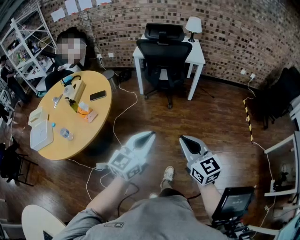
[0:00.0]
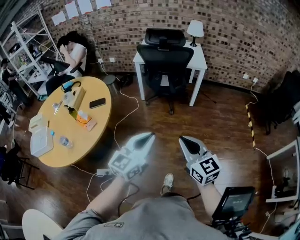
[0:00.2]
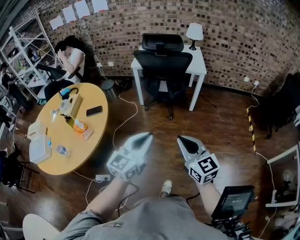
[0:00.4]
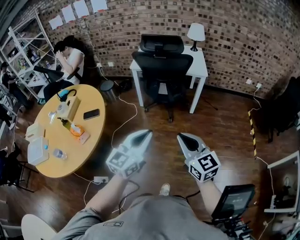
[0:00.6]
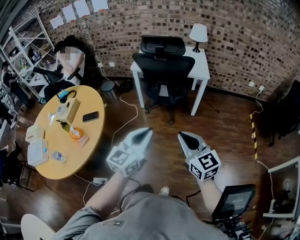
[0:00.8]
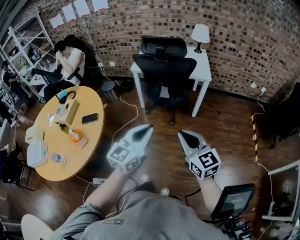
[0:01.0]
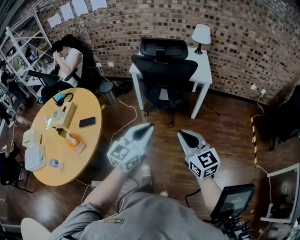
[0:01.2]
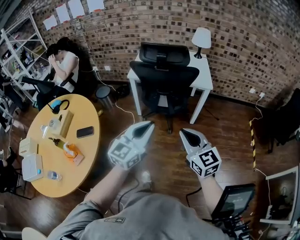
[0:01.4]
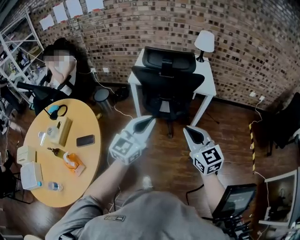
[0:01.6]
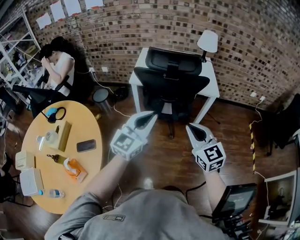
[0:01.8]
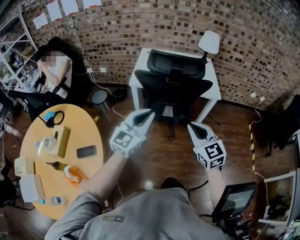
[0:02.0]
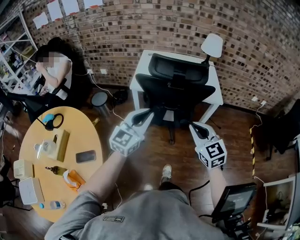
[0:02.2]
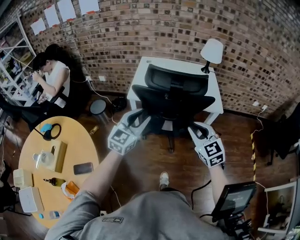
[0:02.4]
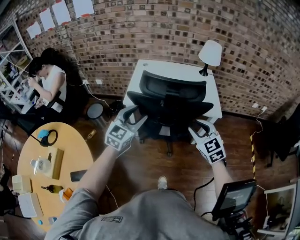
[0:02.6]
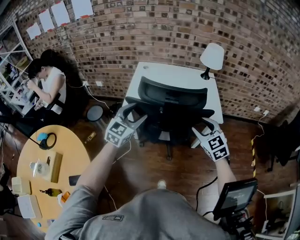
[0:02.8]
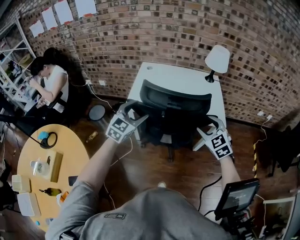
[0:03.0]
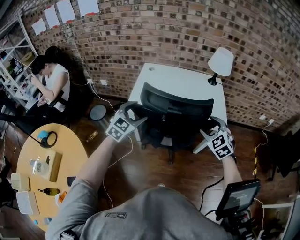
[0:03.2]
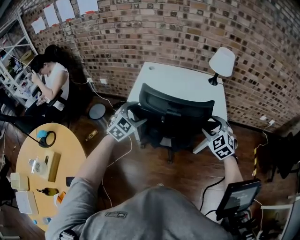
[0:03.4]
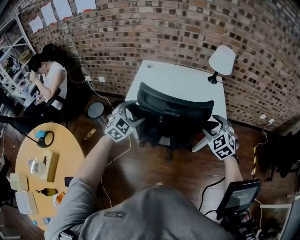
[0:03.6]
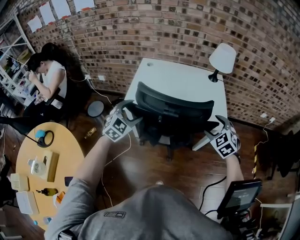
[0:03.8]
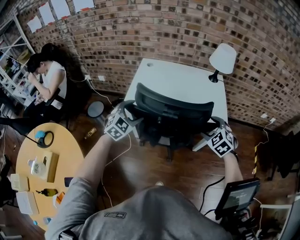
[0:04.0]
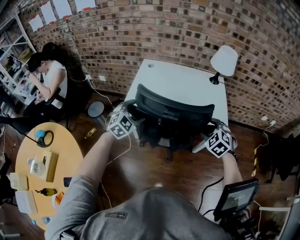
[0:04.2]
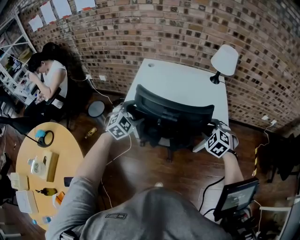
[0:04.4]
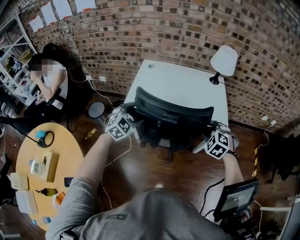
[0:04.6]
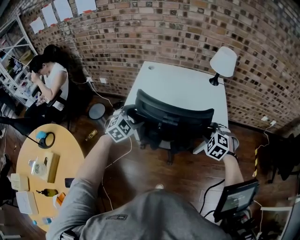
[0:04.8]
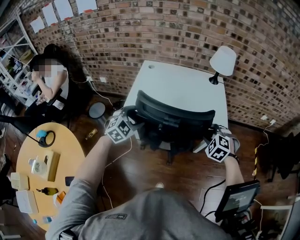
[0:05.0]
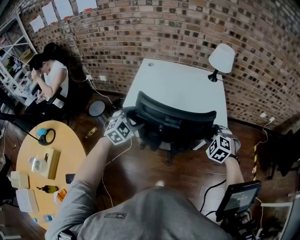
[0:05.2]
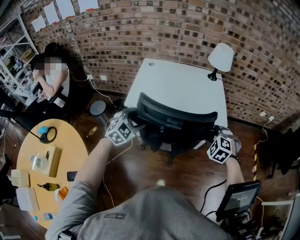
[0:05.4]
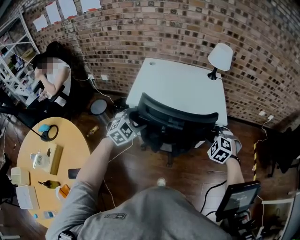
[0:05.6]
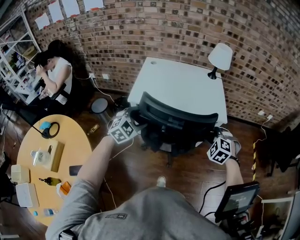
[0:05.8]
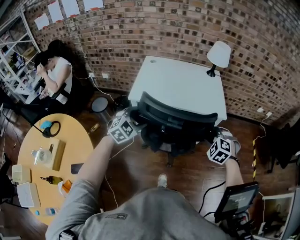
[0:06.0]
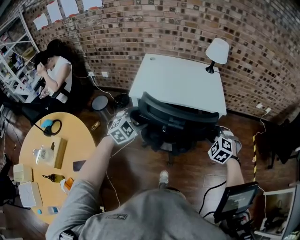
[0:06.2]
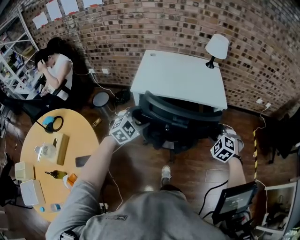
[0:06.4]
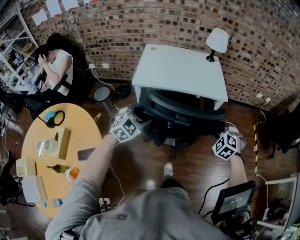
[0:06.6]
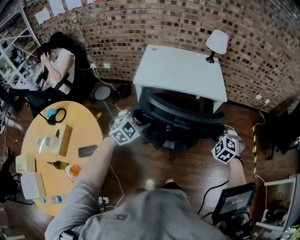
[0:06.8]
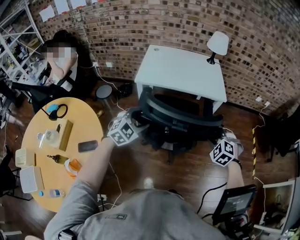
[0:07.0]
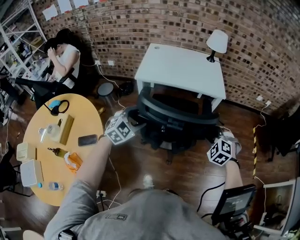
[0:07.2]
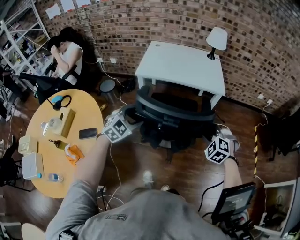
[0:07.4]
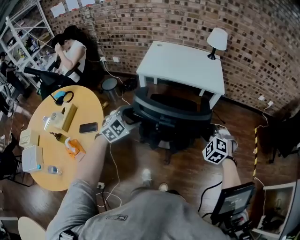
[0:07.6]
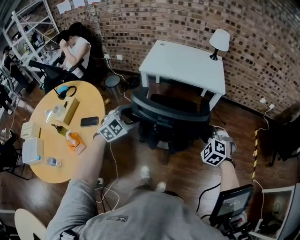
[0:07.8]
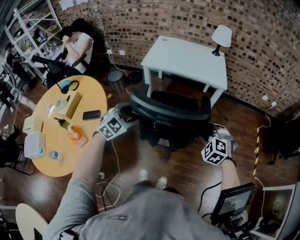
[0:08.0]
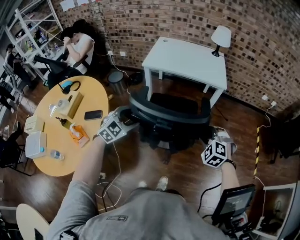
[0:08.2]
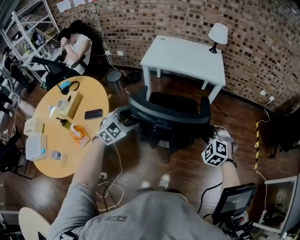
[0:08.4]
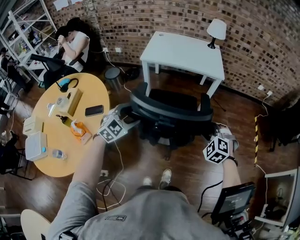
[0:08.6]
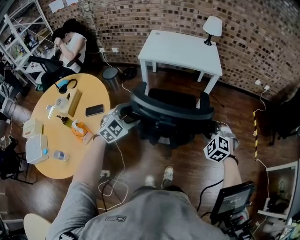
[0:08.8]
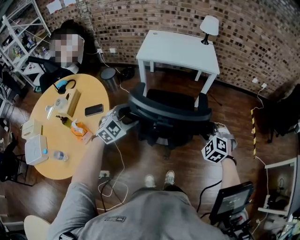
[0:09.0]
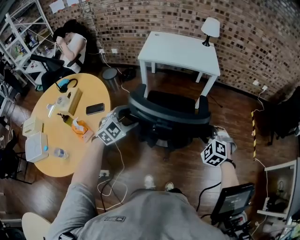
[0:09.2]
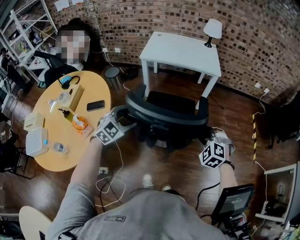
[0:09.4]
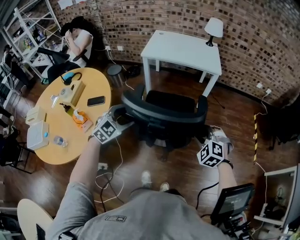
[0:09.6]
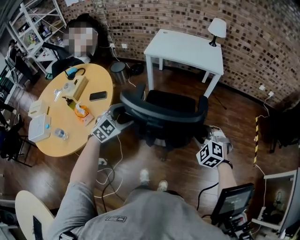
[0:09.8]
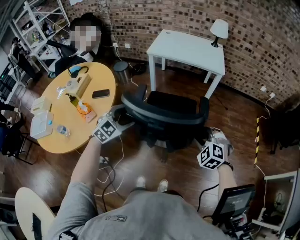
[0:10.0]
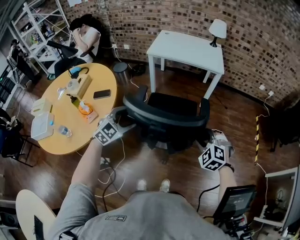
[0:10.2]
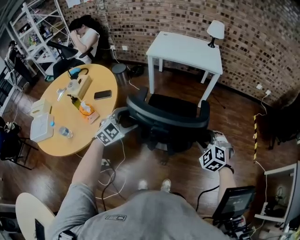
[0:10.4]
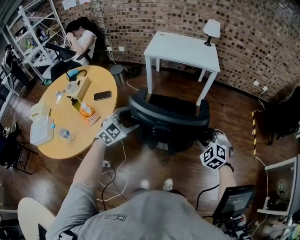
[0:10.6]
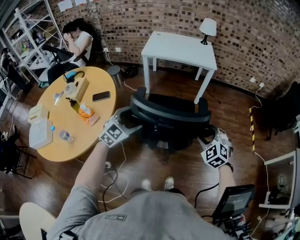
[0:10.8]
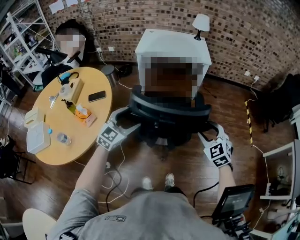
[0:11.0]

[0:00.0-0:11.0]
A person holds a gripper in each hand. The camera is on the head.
0.0 to 1.6 s: The two grippers travel together, forward, approximately 40 cm.
1.6 to 3.2 s: Both grippers move forward, roughly 40 cm. The left gripper swivels about 30 degrees, and opens its fingers. The right gripper swivels about 40 degrees, and opens its fingers.
3.2 to 4.8 s: The right gripper moves downward, about 5 cm, and turns by some 30 degrees, while the left gripper shifts by about 5 cm.
4.8 to 6.2 s: Both grippers travel together backward, roughly 15 cm.
6.2 to 7.8 s: The grippers both shift backward by approximately 25 cm.
7.8 to 9.4 s: Both grippers move backward, some 15 cm.
9.4 to 11.0 s: Both grippers travel together backward, about 10 cm. The left gripper changes its angle by roughly 20 degrees; the right gripper swivels about 30 degrees.

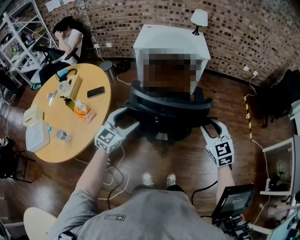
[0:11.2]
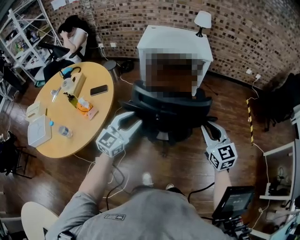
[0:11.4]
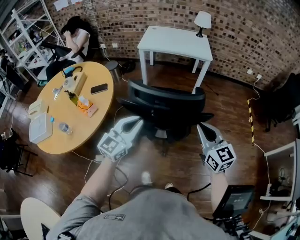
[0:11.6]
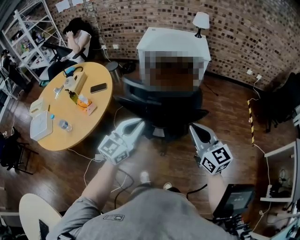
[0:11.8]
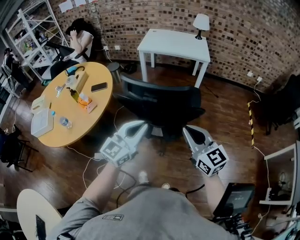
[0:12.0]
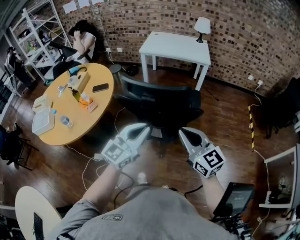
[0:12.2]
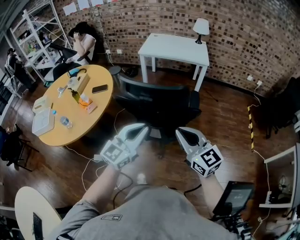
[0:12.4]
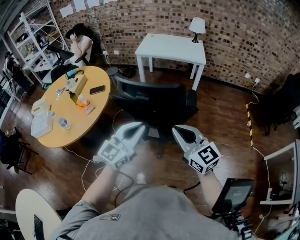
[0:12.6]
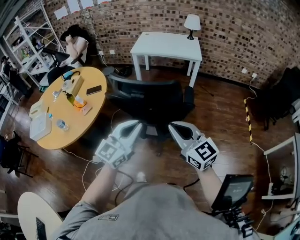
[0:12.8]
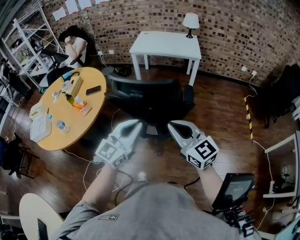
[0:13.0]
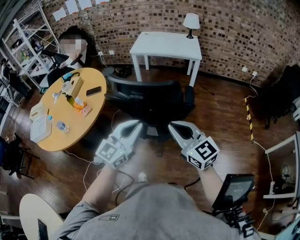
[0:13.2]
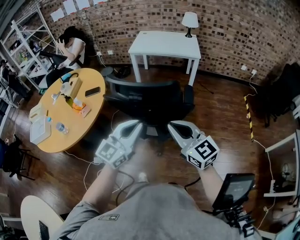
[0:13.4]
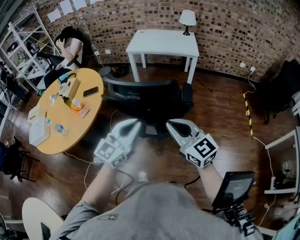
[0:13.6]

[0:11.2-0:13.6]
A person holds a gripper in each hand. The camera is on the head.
11.2 to 12.4 s: The right gripper shifts approximately 15 cm backward and upward, swivels approximately 40 degrees, and closes its fingers; the left gripper travels to the right, backward and upward by approximately 25 cm, and closes its fingers.
12.4 to 13.6 s: Both grippers stay put.

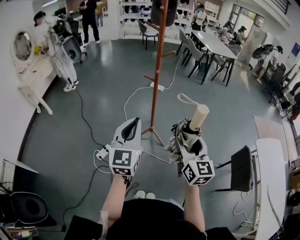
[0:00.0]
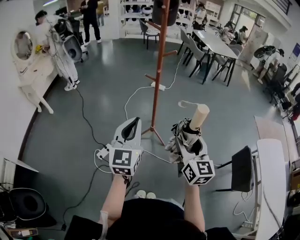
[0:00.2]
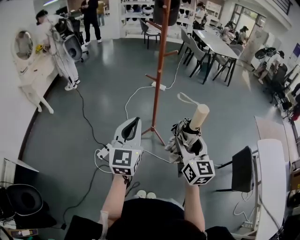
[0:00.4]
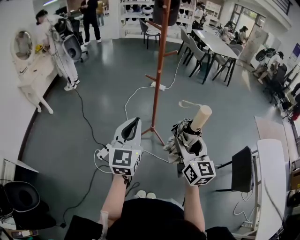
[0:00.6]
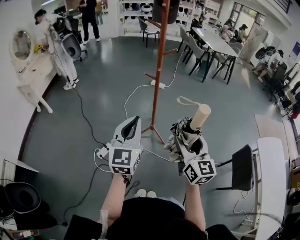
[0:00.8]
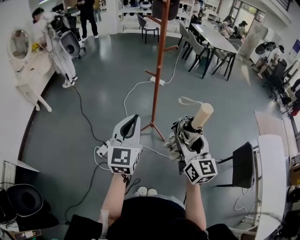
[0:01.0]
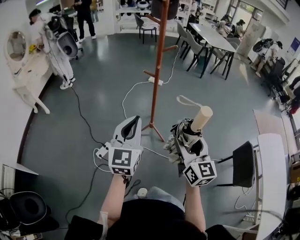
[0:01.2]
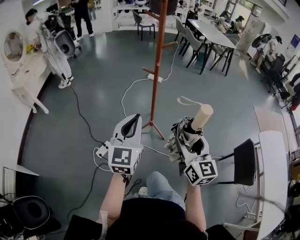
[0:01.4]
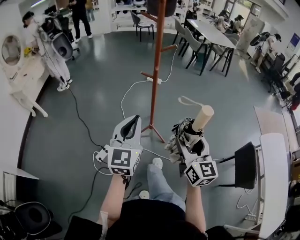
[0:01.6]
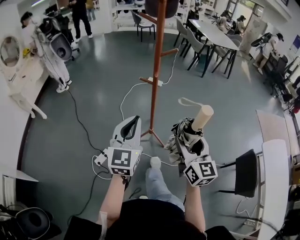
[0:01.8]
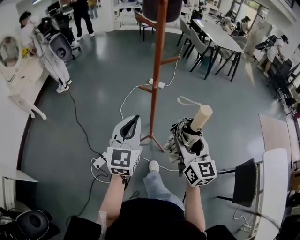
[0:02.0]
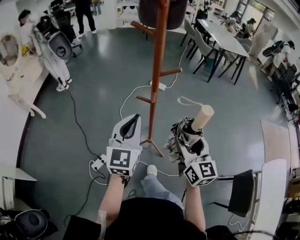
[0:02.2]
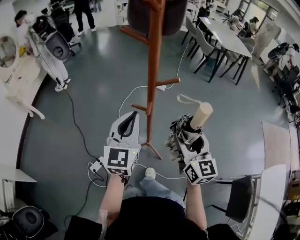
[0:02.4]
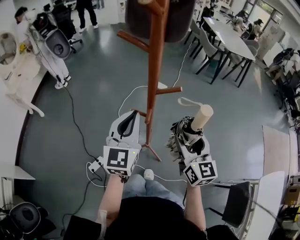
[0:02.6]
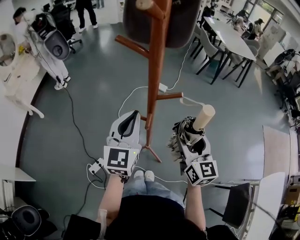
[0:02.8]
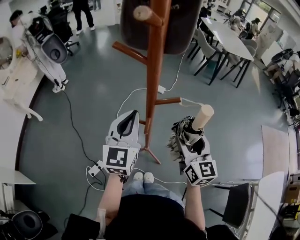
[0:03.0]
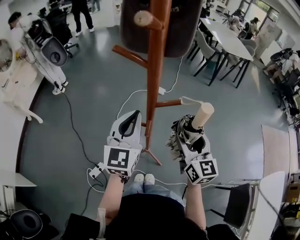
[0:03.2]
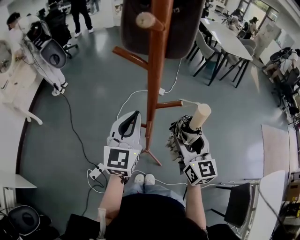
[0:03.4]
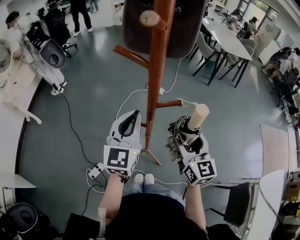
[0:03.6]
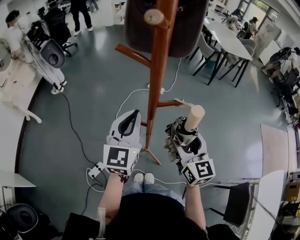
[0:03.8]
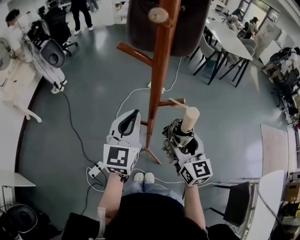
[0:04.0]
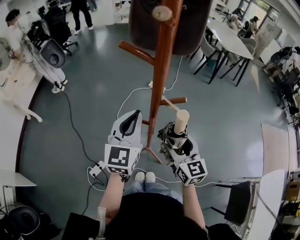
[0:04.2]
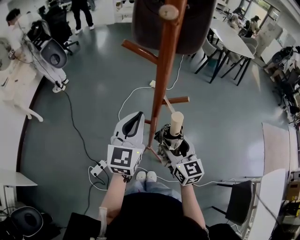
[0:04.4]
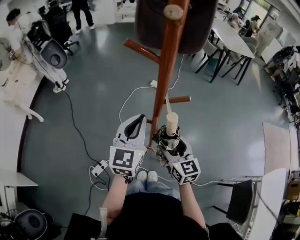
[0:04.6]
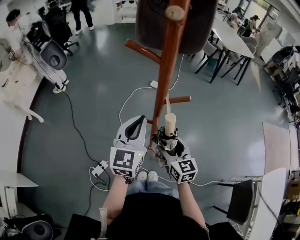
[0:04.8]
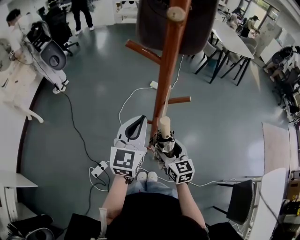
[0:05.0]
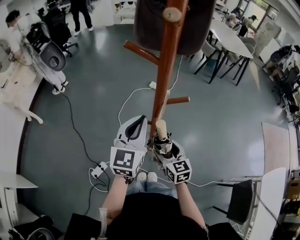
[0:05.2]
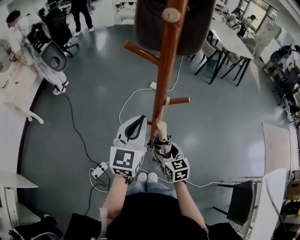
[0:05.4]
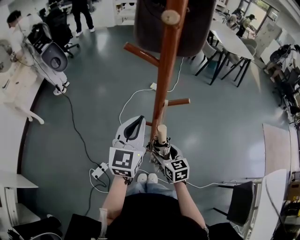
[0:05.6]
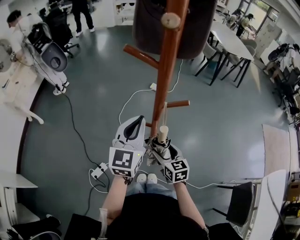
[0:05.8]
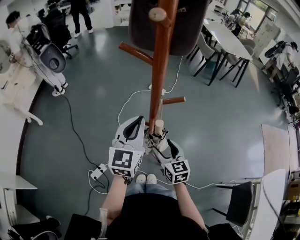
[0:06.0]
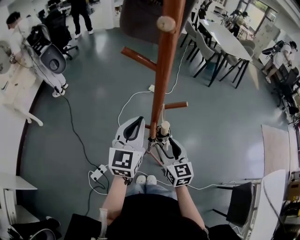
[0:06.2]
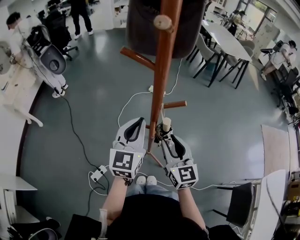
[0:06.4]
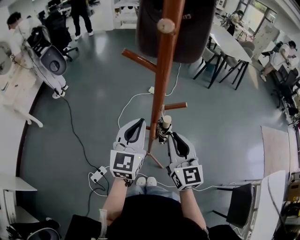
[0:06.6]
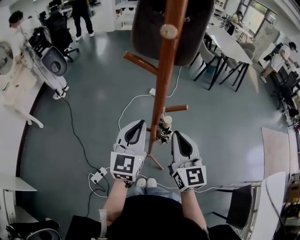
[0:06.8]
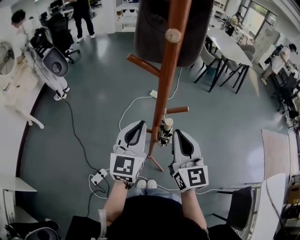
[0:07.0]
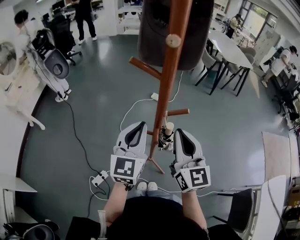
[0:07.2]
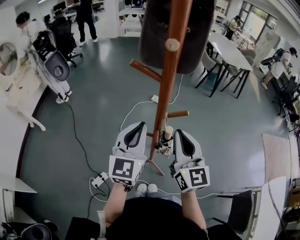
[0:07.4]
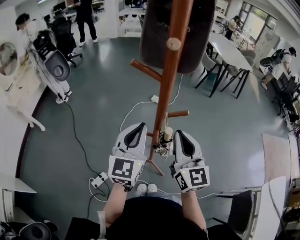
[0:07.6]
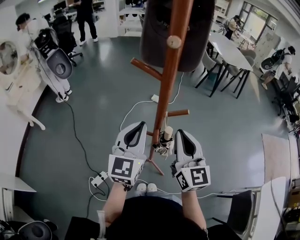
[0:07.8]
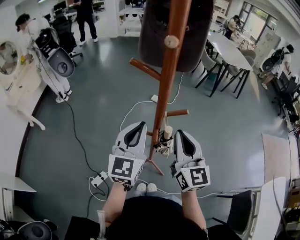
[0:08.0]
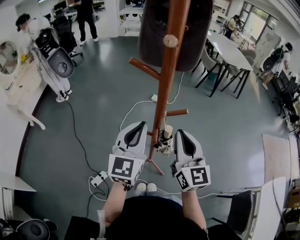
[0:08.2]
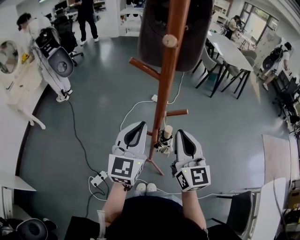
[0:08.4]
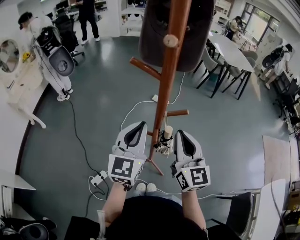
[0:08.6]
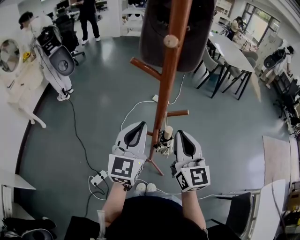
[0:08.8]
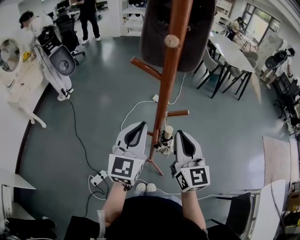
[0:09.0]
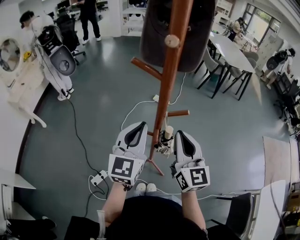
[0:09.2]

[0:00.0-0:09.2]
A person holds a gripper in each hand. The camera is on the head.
0.0 to 1.6 s: The grippers both shift forward by about 5 cm.
1.6 to 3.0 s: The grippers both shift forward by approximately 40 cm.
3.0 to 4.6 s: The right gripper travels to the left and downward by about 10 cm.
4.6 to 6.2 s: The right gripper goes downward and returns, roughly 10 cm each way.
6.2 to 7.6 s: The left gripper changes place by some 5 cm; the right gripper is displaced upward by roughly 20 cm, turns by roughly 20 degrees, and closes its fingers.
7.6 to 9.2 s: There are only small adjustments of the grippers.

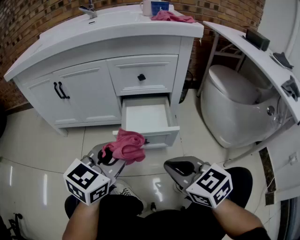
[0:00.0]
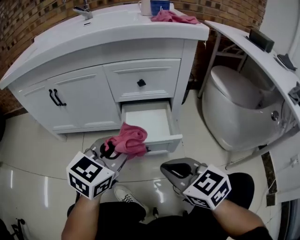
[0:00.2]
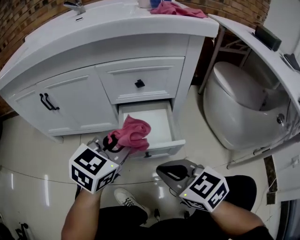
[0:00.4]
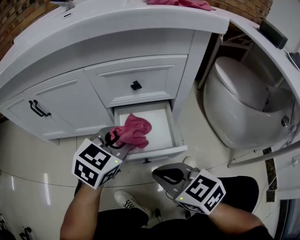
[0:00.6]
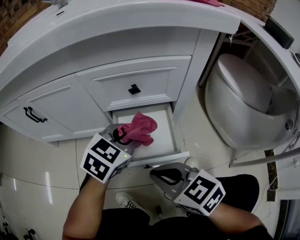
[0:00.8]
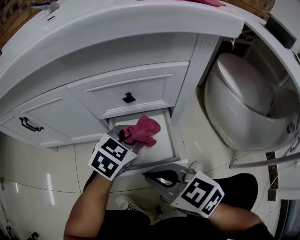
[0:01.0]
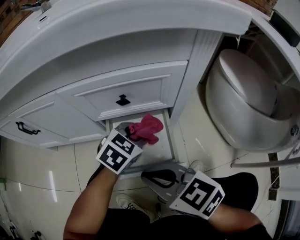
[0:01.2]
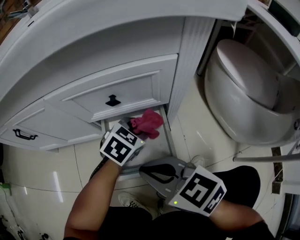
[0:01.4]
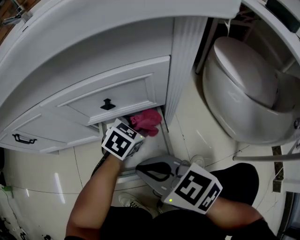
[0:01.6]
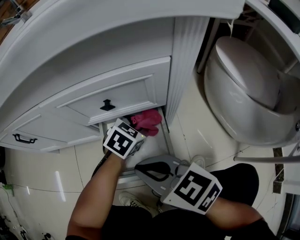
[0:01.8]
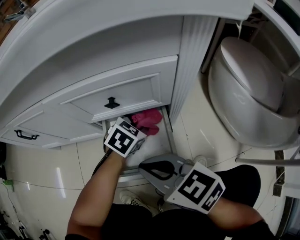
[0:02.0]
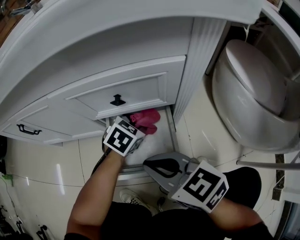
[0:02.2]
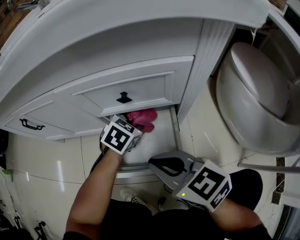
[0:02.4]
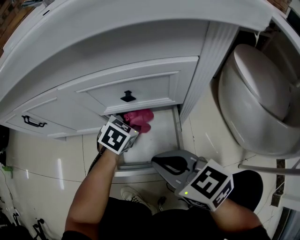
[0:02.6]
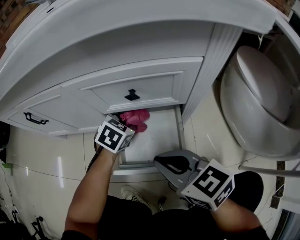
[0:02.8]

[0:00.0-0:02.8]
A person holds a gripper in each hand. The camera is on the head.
0.0 to 1.4 s: The left gripper heads forward, downward and to the right, covering some 35 cm, and changes its angle by approximately 30 degrees. Meanwhile the right gripper heads forward, covering about 20 cm.
1.4 to 2.8 s: The left gripper heads to the left, covering roughly 10 cm.
